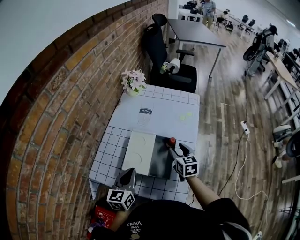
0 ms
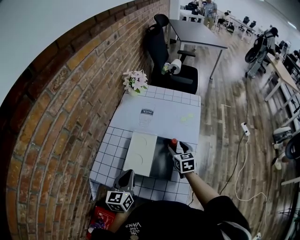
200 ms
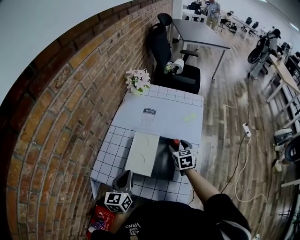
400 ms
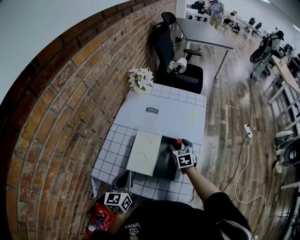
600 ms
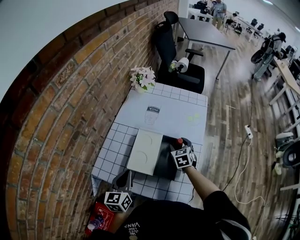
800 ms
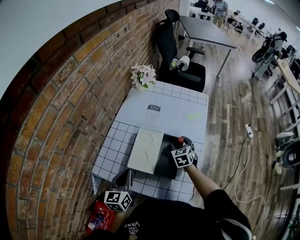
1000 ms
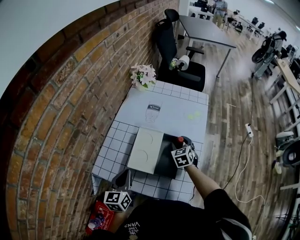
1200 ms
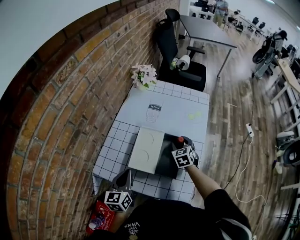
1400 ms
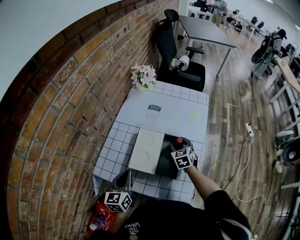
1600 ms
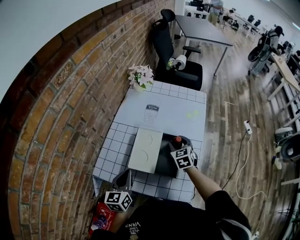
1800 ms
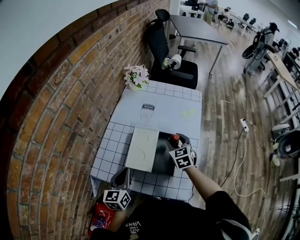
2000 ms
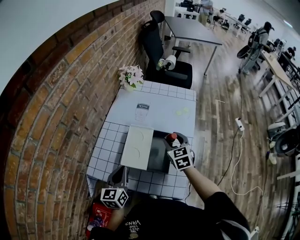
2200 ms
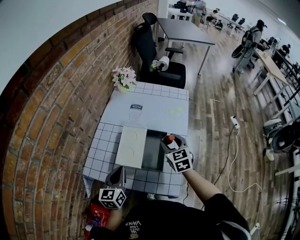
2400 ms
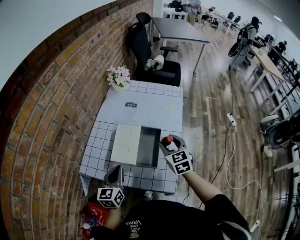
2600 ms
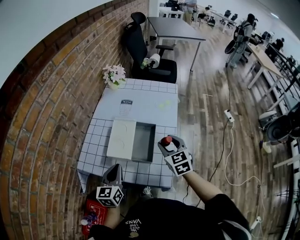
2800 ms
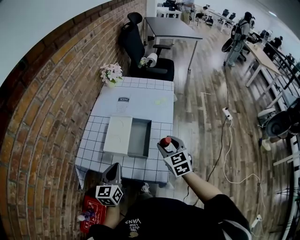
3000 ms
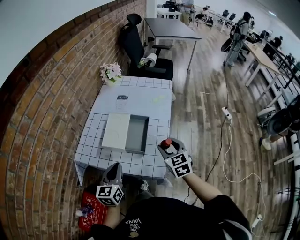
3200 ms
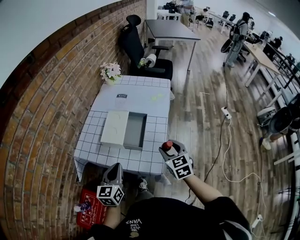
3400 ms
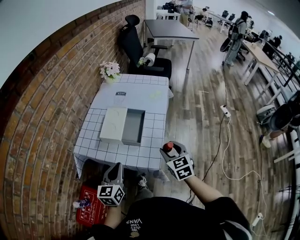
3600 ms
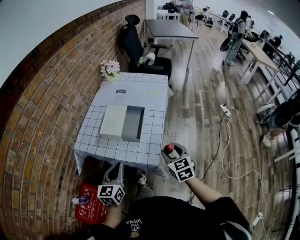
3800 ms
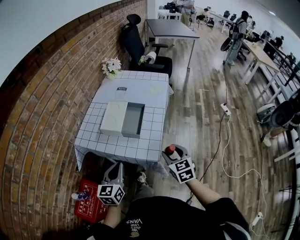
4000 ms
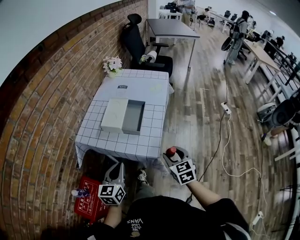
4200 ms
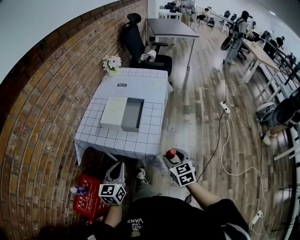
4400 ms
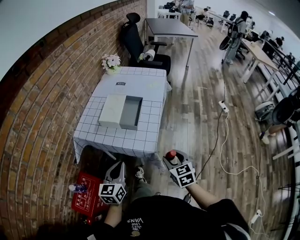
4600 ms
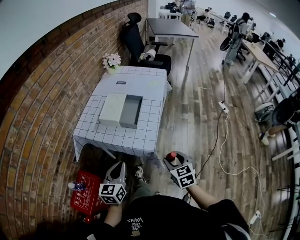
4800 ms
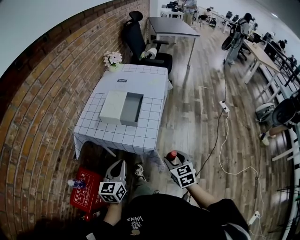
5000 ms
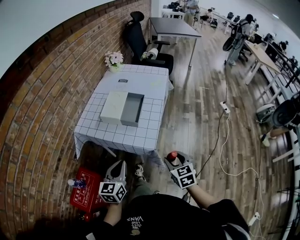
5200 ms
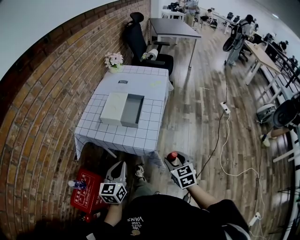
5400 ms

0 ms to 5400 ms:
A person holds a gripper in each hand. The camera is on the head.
0 ms to 1400 ms: The left gripper shifts some 5 cm to the left. Meanwhile the right gripper shifts roughly 10 cm downward and forward, and changes its angle by about 30 degrees.
1400 ms to 2800 ms: The right gripper moves backward and upward, some 20 cm, while the left gripper moves to the right, approximately 5 cm.
2800 ms to 4000 ms: The grippers both shift backward by roughly 20 cm.
4000 ms to 5400 ms: The two grippers go some 10 cm backward.

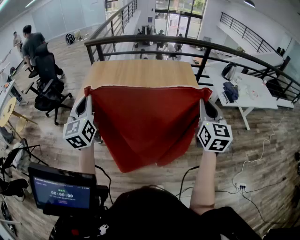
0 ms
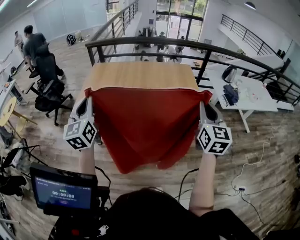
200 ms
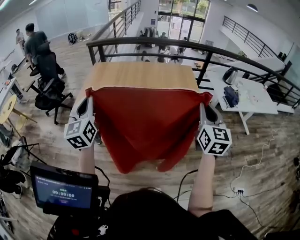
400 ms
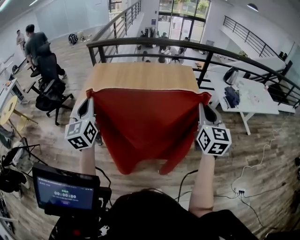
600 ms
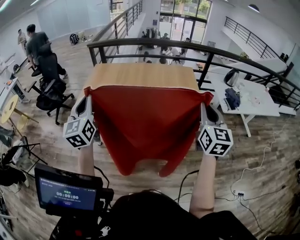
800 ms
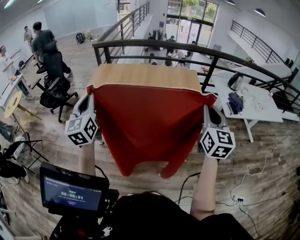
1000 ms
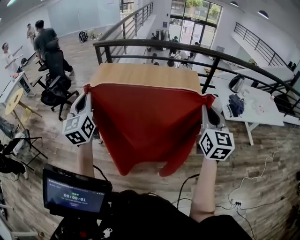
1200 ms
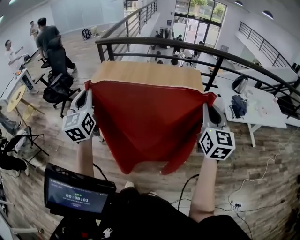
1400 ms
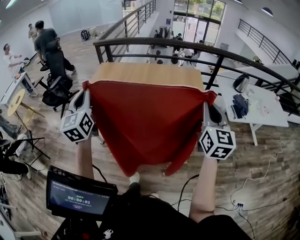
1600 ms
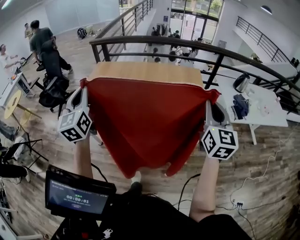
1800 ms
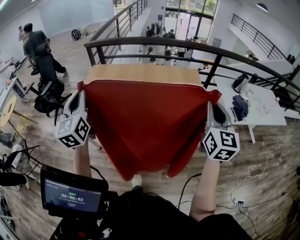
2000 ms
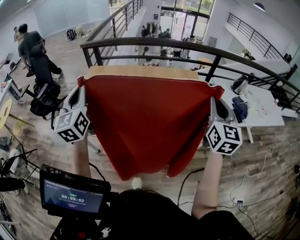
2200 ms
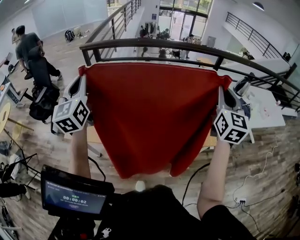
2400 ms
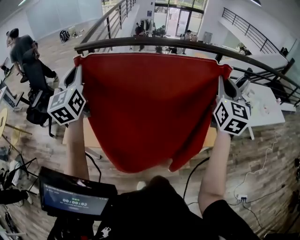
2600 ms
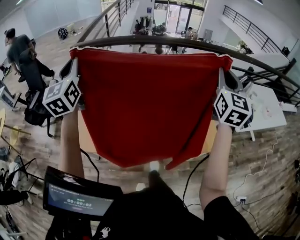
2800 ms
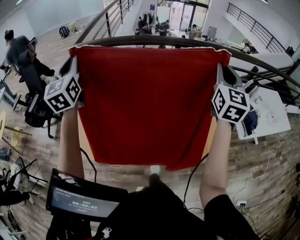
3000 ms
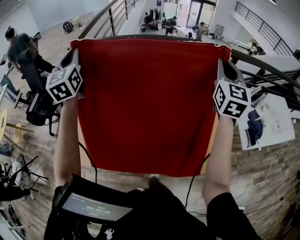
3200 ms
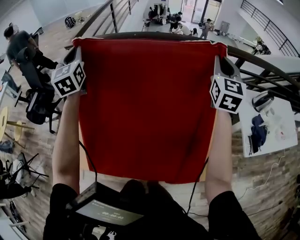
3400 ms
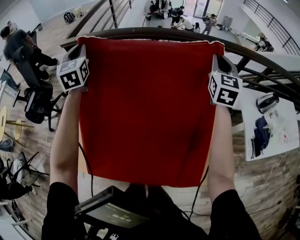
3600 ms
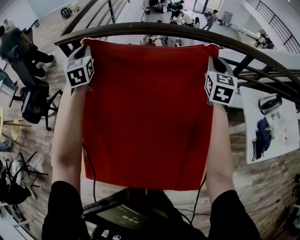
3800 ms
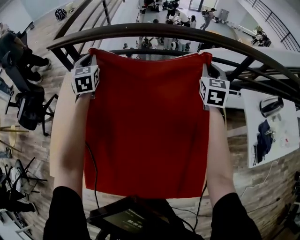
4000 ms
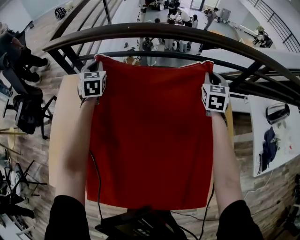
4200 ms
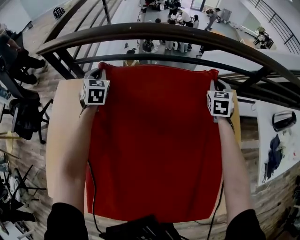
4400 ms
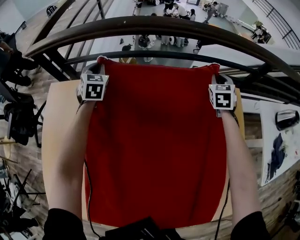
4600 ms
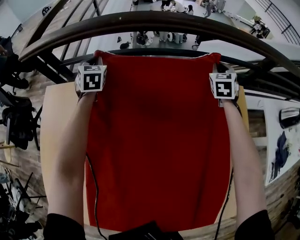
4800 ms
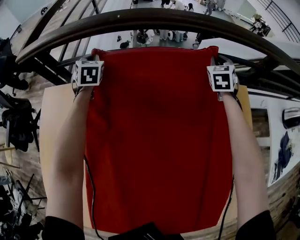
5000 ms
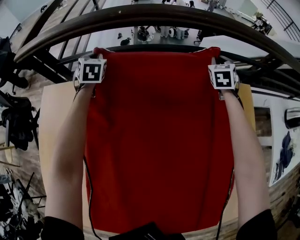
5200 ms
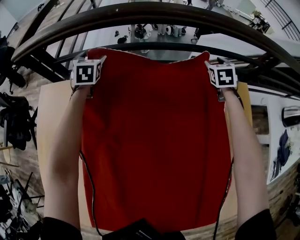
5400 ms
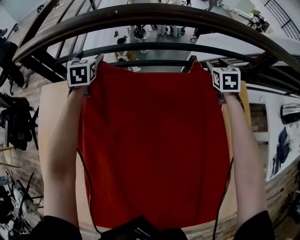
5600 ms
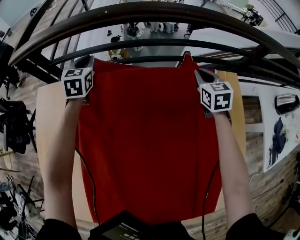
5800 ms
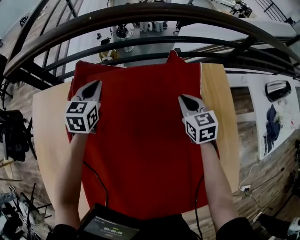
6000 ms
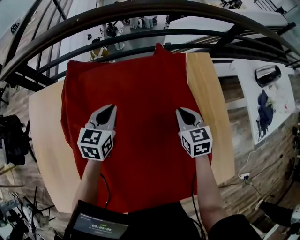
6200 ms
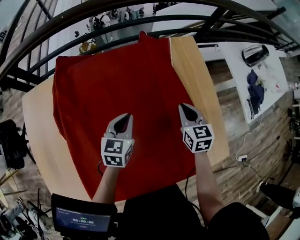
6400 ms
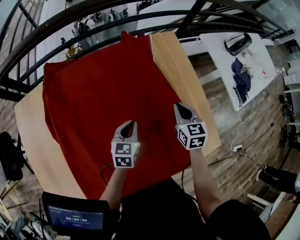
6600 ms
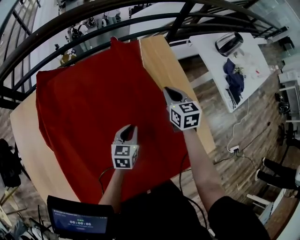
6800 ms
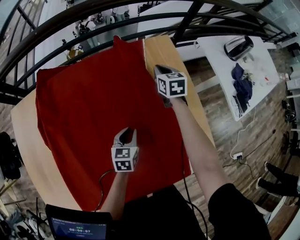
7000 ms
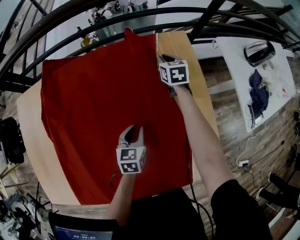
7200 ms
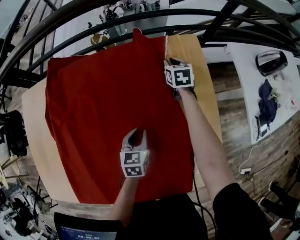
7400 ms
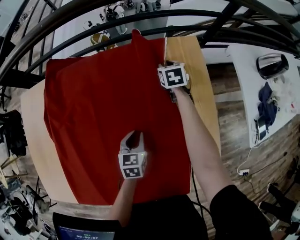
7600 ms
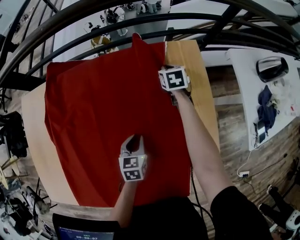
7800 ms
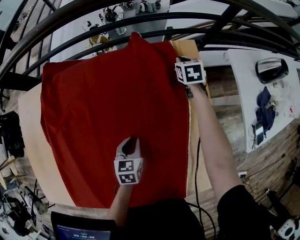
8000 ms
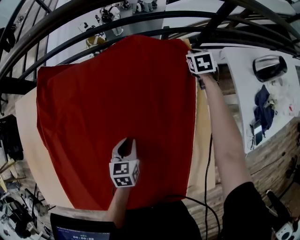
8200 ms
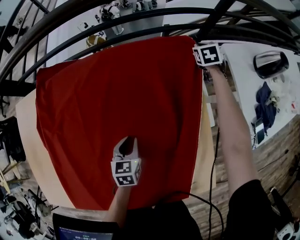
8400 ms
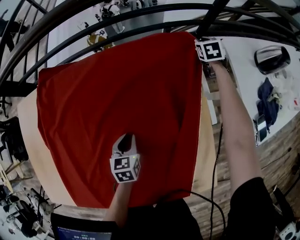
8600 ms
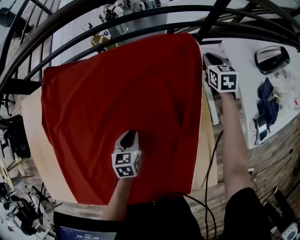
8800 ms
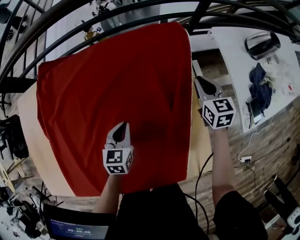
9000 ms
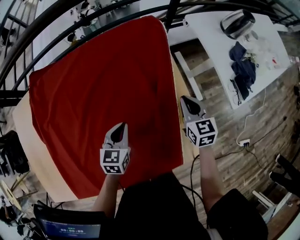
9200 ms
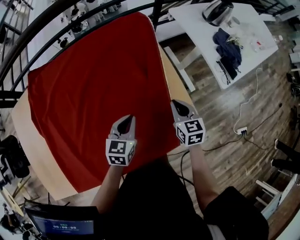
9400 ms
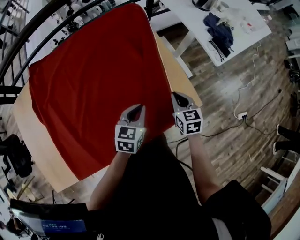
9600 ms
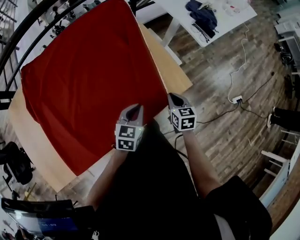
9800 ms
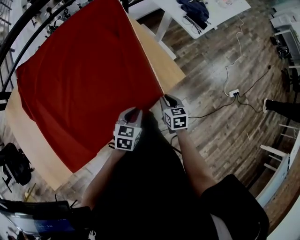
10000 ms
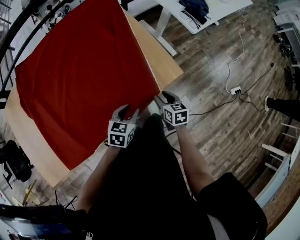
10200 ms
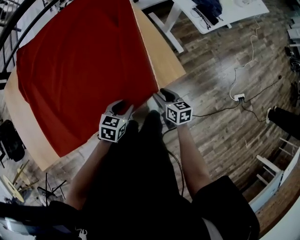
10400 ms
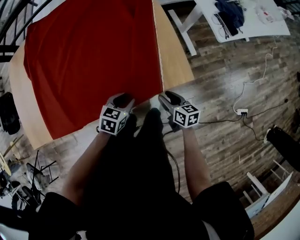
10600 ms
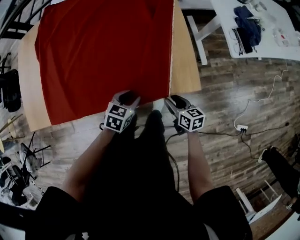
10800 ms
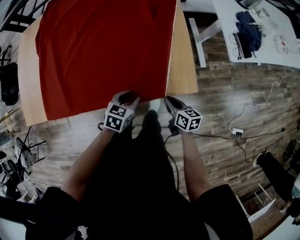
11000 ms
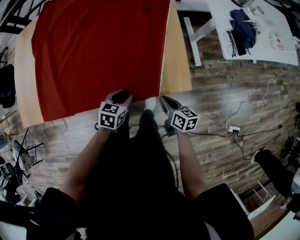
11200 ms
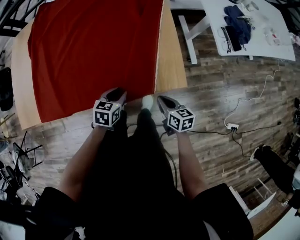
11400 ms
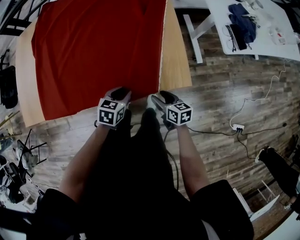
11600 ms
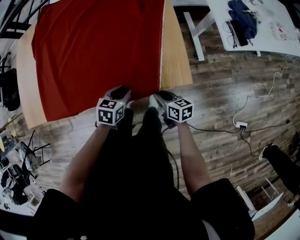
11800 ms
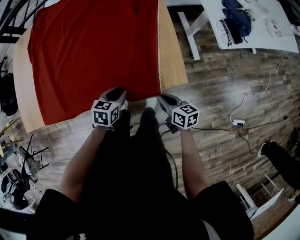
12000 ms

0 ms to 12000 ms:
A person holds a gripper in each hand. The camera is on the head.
0 ms to 1600 ms: The left gripper goes roughly 5 cm forward, while the right gripper goes some 10 cm forward and to the right.
1600 ms to 3000 ms: The two grippers travel together, forward, roughly 40 cm.
3000 ms to 4400 ms: The two grippers travel together, forward, some 50 cm. Both grippers move downward, about 40 cm. The right gripper tilts its fingers about 30 degrees downward, while the left gripper angles its fingers downward, by some 30 degrees.
4400 ms to 6000 ms: The left gripper heads to the right, covering about 10 cm, goes forward and returns, some 10 cm each way, changes its angle by approximately 30 degrees, and opens and closes again. The right gripper moves backward, to the left and downward, roughly 15 cm, changes its angle by roughly 20 degrees, and opens, then closes once more.
6000 ms to 7600 ms: The right gripper goes about 20 cm to the right, downward and forward, turns by about 20 degrees, and opens. The left gripper travels to the right, backward and downward by some 40 cm, and rotates some 20 degrees.
7600 ms to 9000 ms: The right gripper goes roughly 25 cm to the right, backward and upward, and closes up, while the left gripper is displaced upward by about 5 cm.
9000 ms to 10400 ms: The right gripper moves roughly 50 cm, turns by about 30 degrees, and opens its fingers. Meanwhile the left gripper ends up roughly 40 cm from where it was, rotates about 40 degrees, and opens its fingers.
10400 ms to 12000 ms: The left gripper changes its angle by about 20 degrees. The right gripper swivels about 20 degrees, and closes its fingers.

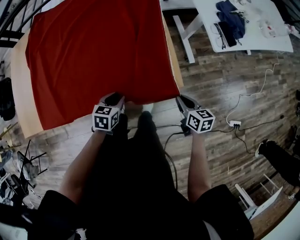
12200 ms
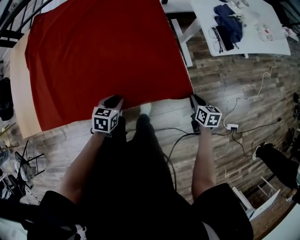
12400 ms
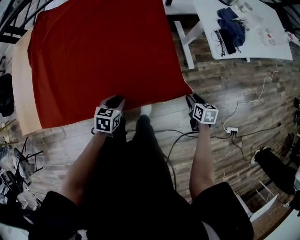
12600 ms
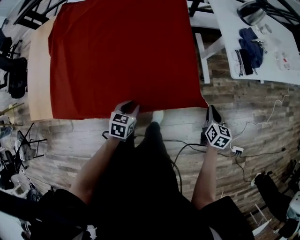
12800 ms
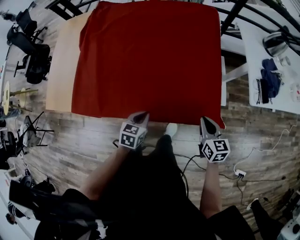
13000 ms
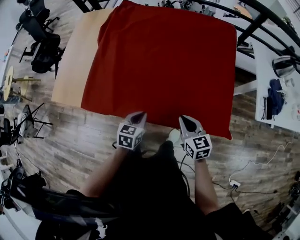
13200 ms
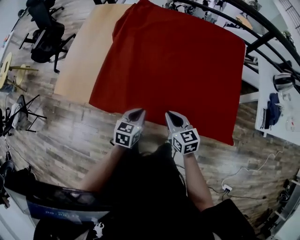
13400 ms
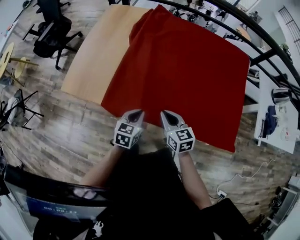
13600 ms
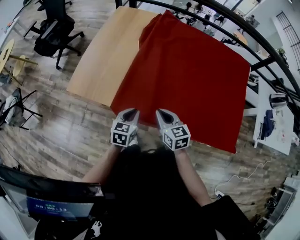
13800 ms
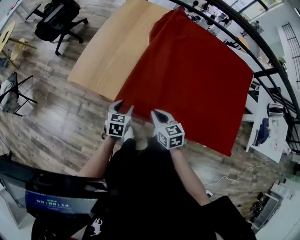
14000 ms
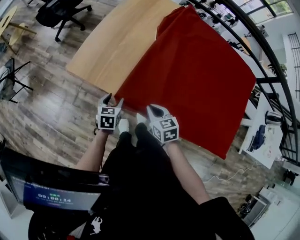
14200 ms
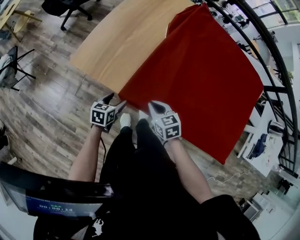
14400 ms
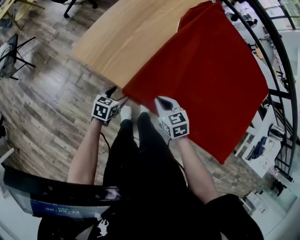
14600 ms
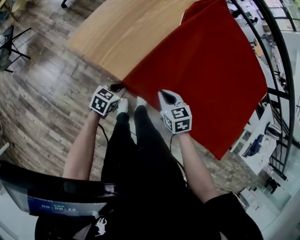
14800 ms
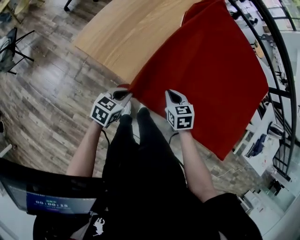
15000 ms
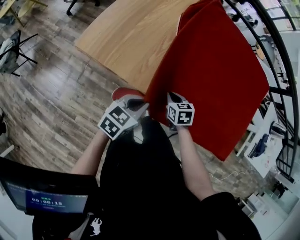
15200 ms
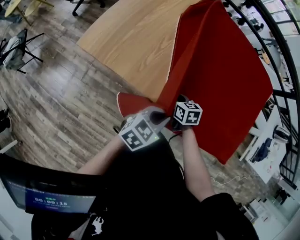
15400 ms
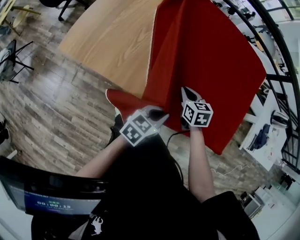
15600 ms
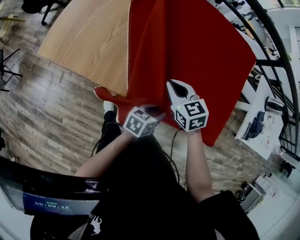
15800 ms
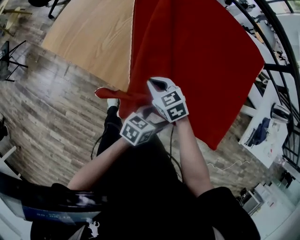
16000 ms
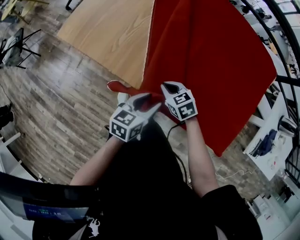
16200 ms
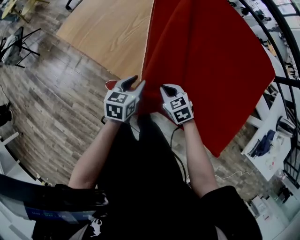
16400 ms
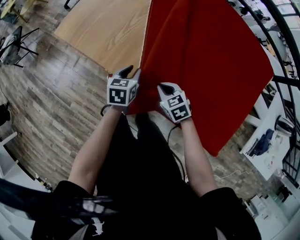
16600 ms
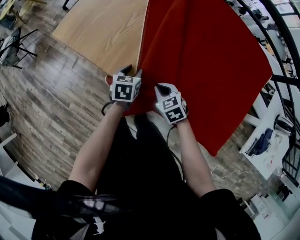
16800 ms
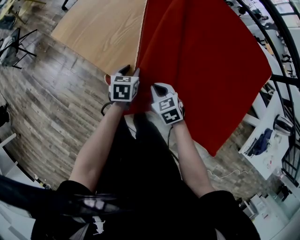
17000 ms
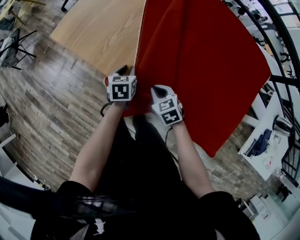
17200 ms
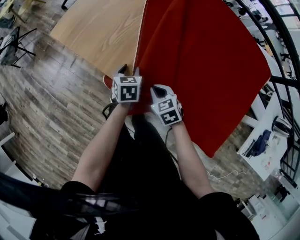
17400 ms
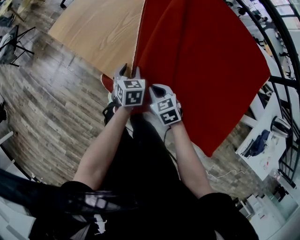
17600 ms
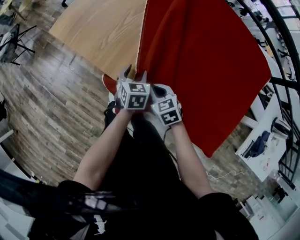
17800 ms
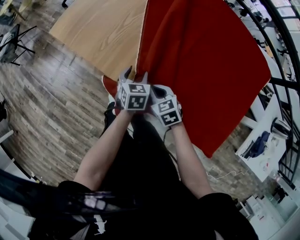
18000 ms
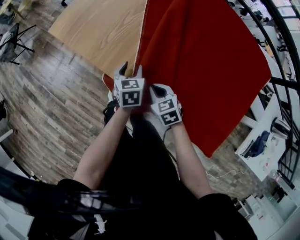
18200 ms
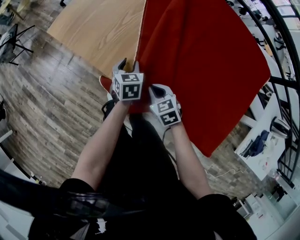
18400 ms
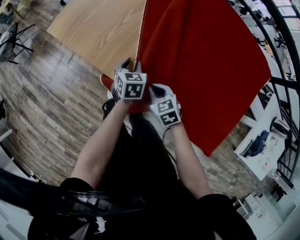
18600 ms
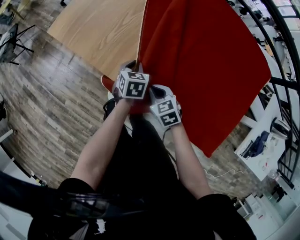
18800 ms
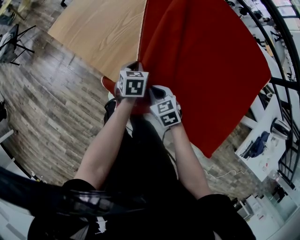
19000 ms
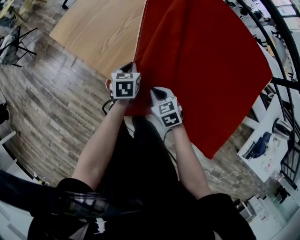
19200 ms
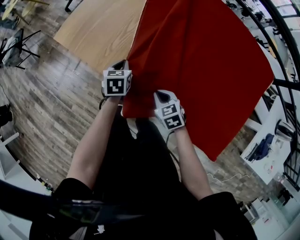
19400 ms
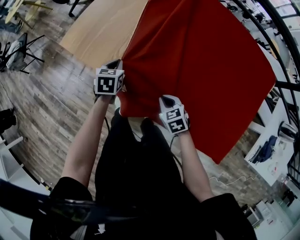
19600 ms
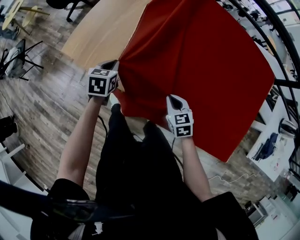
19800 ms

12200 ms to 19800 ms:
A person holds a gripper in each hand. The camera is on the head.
12200 ms to 13800 ms: The two grippers travel together, about 50 cm. The left gripper rotates approximately 40 degrees. Meanwhile the right gripper rotates roughly 50 degrees, and opens, then closes again.
13800 ms to 15200 ms: The right gripper heads downward, covering about 15 cm, and rotates about 30 degrees; the left gripper moves some 15 cm downward and comes back, and opens, then closes again.
15200 ms to 16800 ms: The right gripper goes upward and returns, approximately 15 cm each way, and rotates about 30 degrees. Meanwhile the left gripper moves up and down over roughly 15 cm, changing direction 2 times, turns by about 40 degrees, and opens.
16800 ms to 18200 ms: There are only small adjustments of the grippers.
18200 ms to 19800 ms: The left gripper moves to the left, forward and upward, about 20 cm, and closes up.
